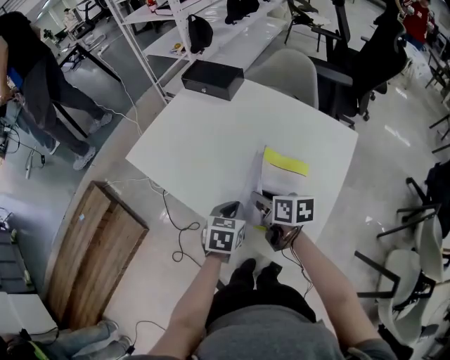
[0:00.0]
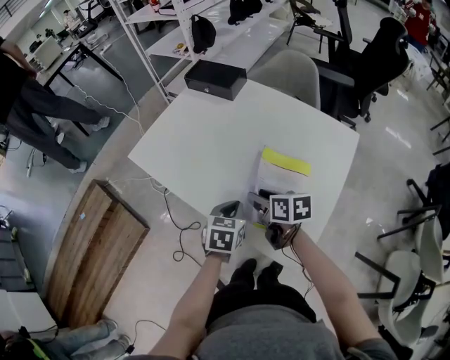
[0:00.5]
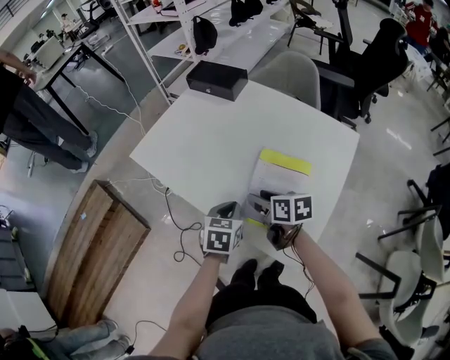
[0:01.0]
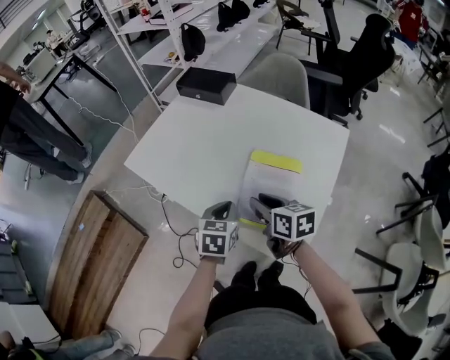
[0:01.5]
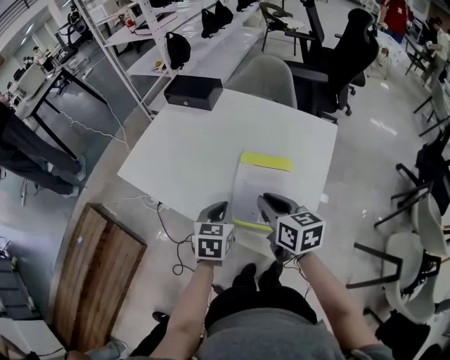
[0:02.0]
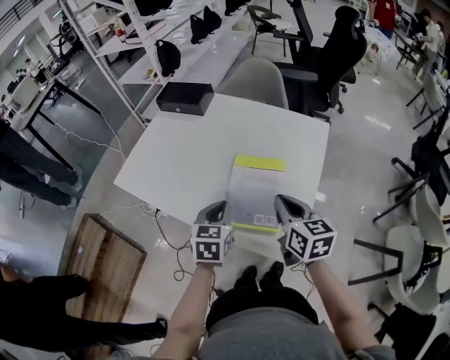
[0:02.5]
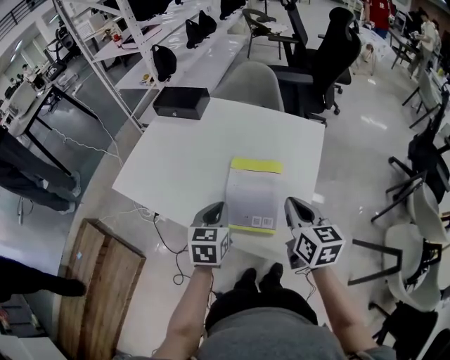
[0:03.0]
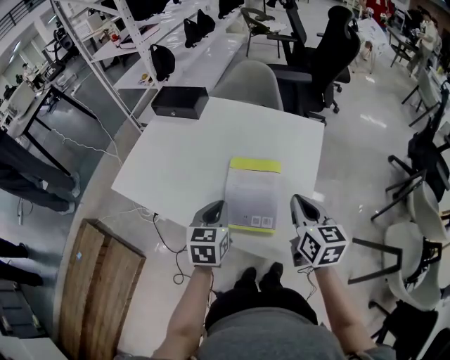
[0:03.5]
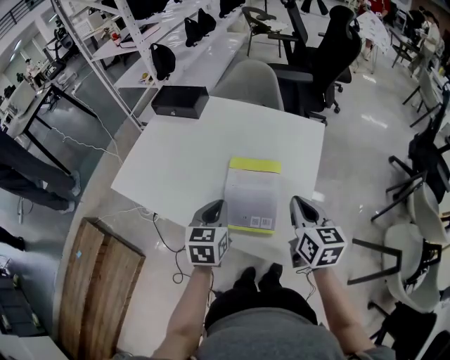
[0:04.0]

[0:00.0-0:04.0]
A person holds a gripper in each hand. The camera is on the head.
0:00.0 to 0:02.0: The right gripper travels upward by roughly 10 cm, and rotates about 20 degrees.
0:02.0 to 0:04.0: The right gripper is displaced to the right by about 10 cm, and swivels roughly 20 degrees.

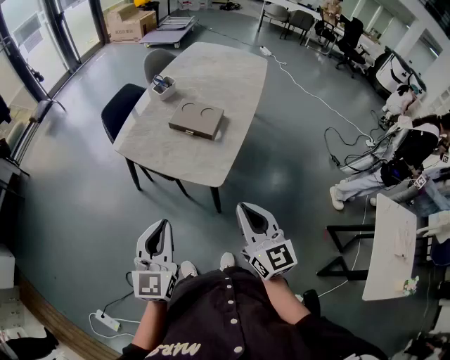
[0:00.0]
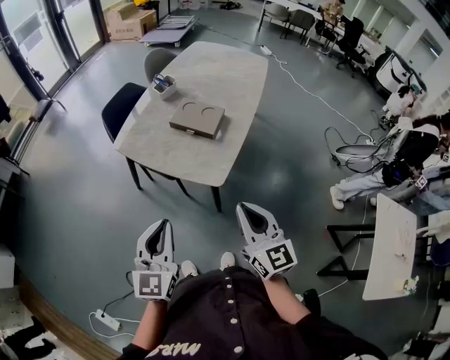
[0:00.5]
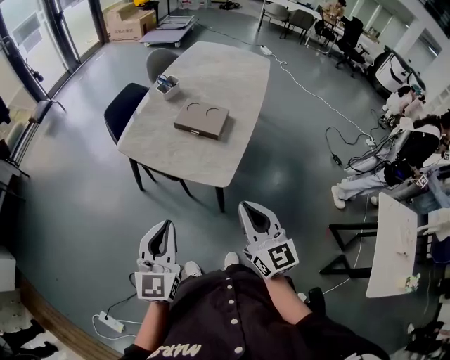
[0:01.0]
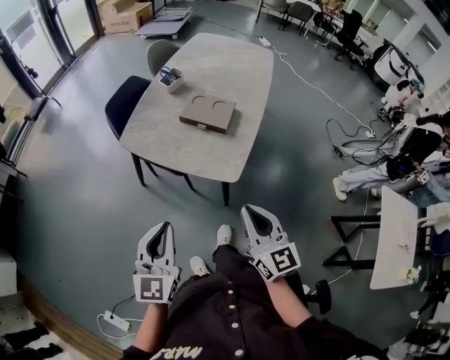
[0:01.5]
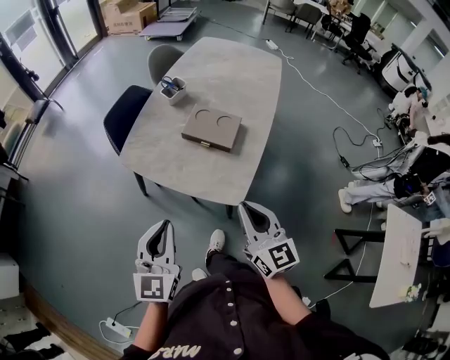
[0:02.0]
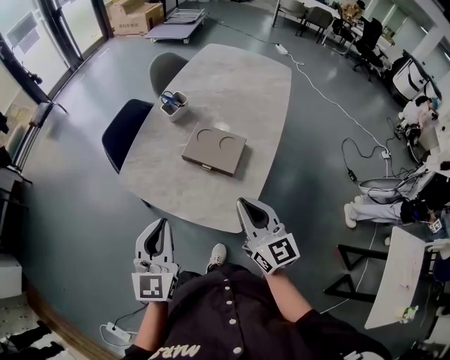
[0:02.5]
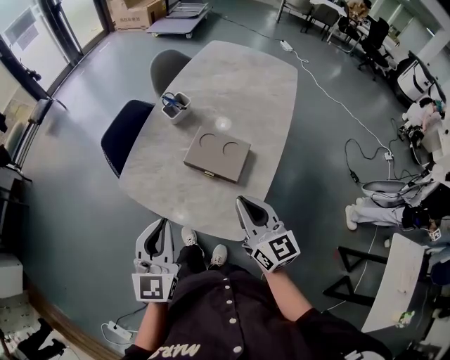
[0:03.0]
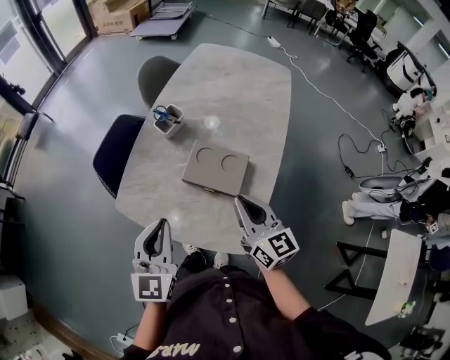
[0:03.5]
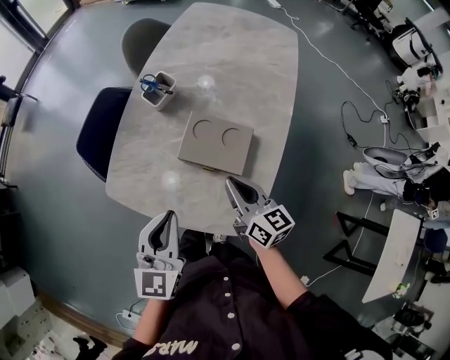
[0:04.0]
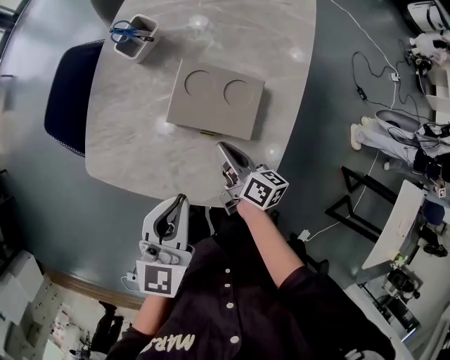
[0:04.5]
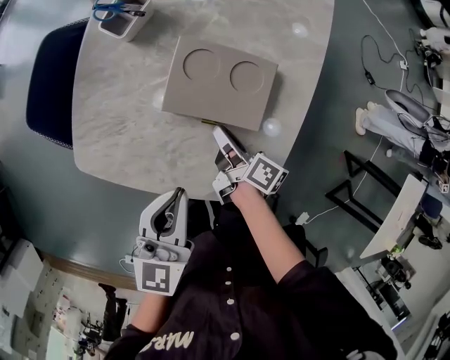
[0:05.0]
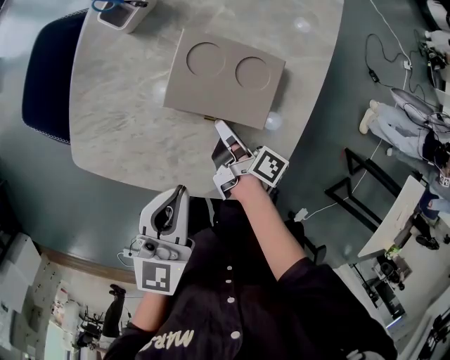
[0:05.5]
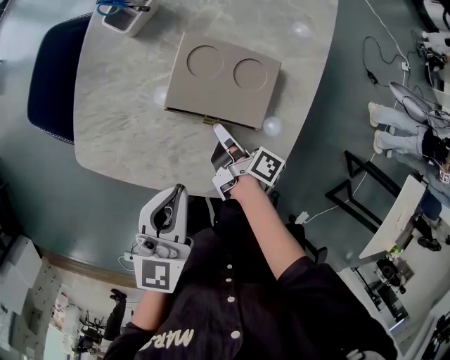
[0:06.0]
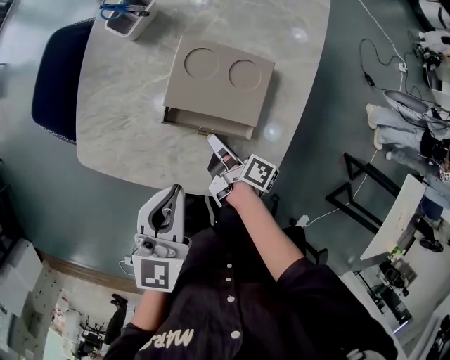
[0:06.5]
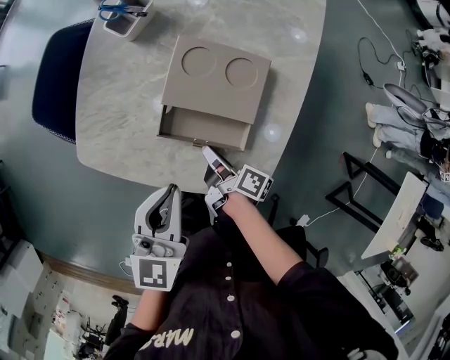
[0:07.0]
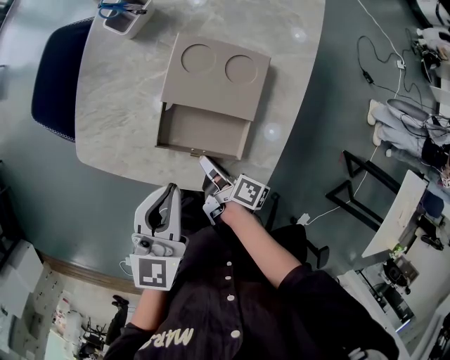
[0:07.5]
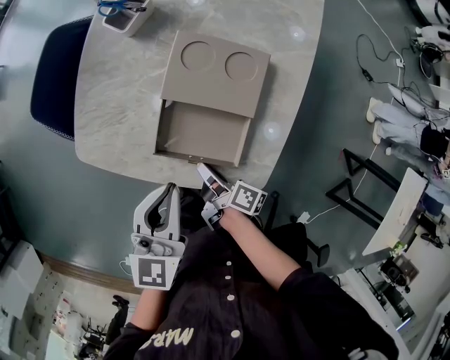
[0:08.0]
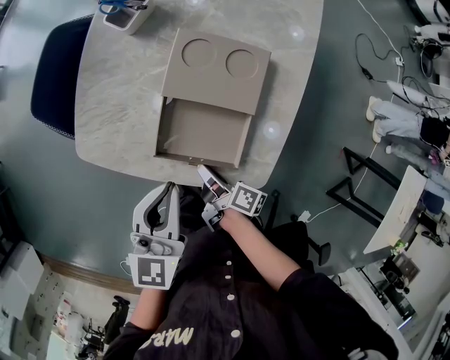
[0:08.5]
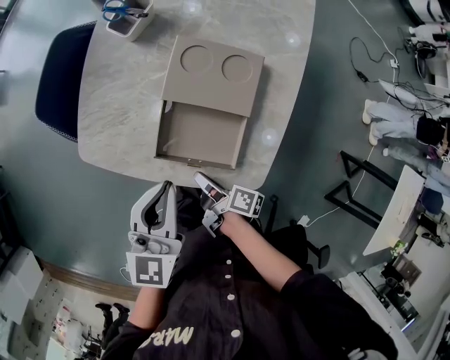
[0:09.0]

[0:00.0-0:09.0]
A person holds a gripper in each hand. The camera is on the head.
0:00.0 to 0:02.0: The two grippers go about 15 cm forward and to the left.
0:02.0 to 0:04.5: Both grippers travel together forward and downward, some 35 cm. The right gripper rolls clockwise, seen from behind, by about 50 degrees; the left gripper swivels roughly 20 degrees.
0:04.5 to 0:07.0: The right gripper goes some 10 cm downward and backward, and changes its angle by some 30 degrees.
0:07.0 to 0:09.0: The right gripper moves backward, roughly 10 cm.

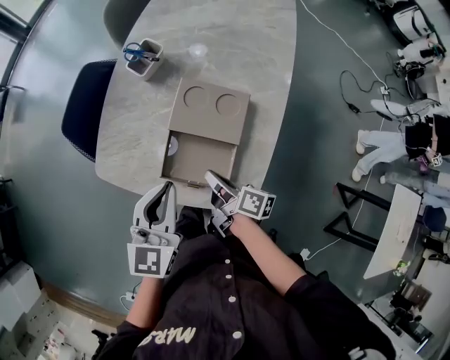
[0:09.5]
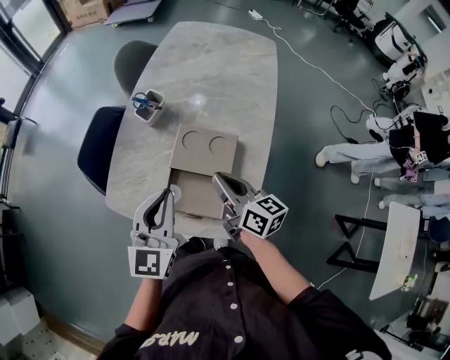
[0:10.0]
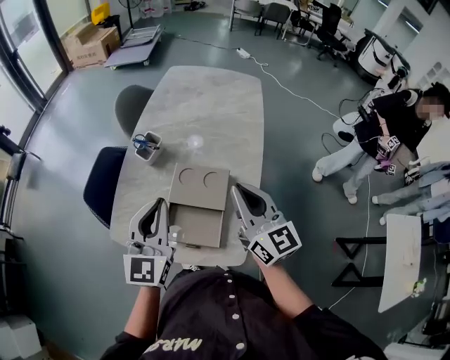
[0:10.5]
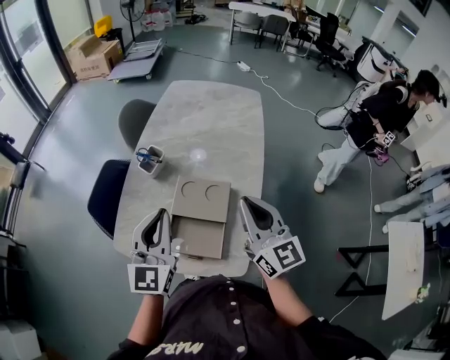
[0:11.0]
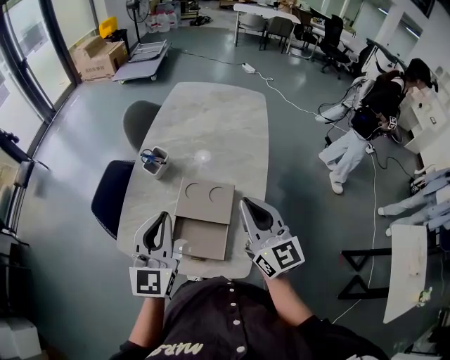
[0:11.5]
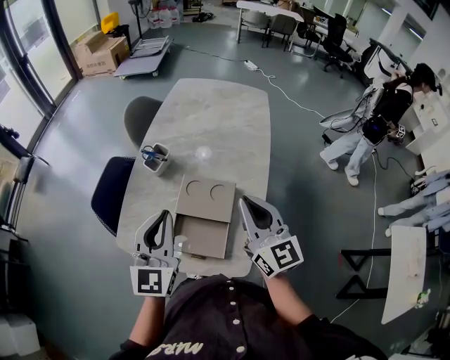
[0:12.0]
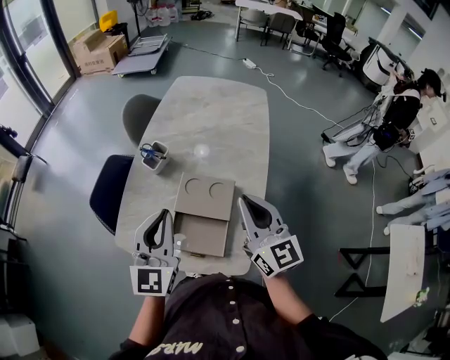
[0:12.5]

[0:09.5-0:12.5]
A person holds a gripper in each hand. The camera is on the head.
0:09.5 to 0:11.0: The left gripper travels upward by approximately 15 cm, and swivels some 20 degrees. The right gripper shifts roughly 30 cm upward, and rotates around the line of its fingers by roughly 70 degrees, counterclockwise from behind.
0:11.0 to 0:12.5: The grippers stay close to where they were, moving slightly.

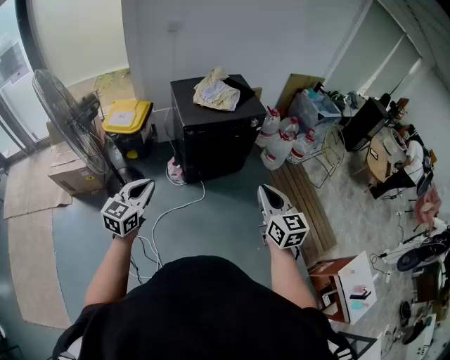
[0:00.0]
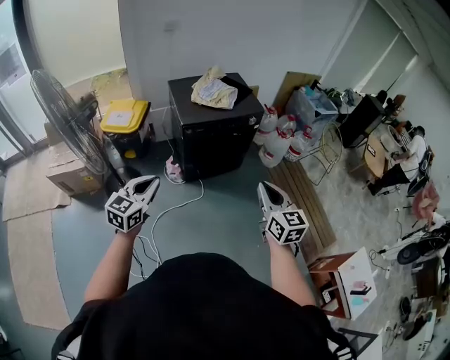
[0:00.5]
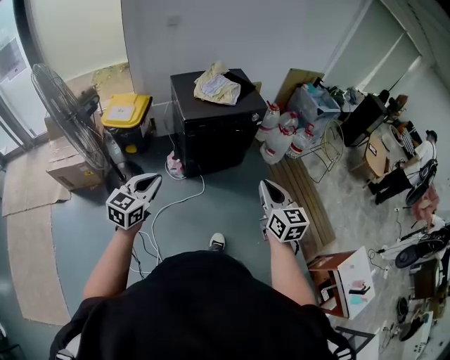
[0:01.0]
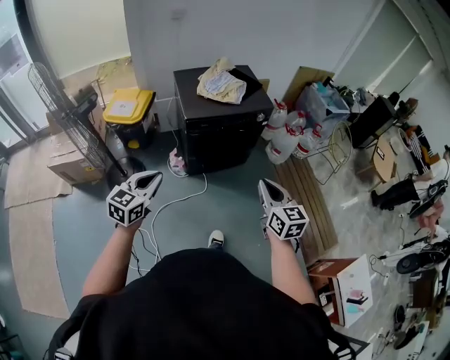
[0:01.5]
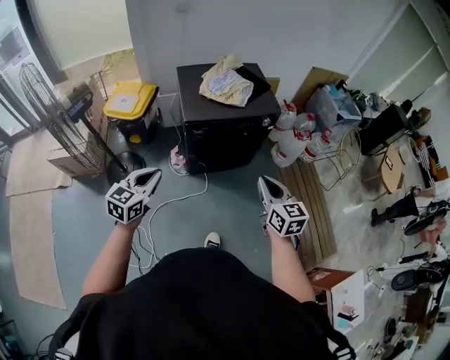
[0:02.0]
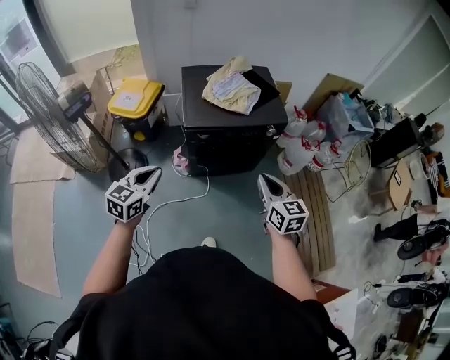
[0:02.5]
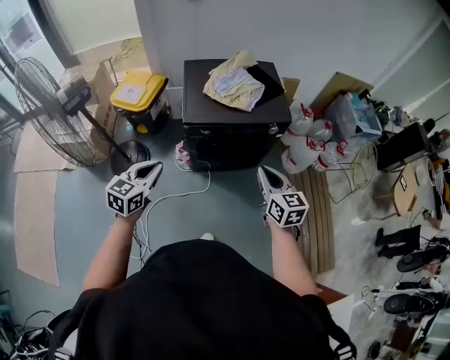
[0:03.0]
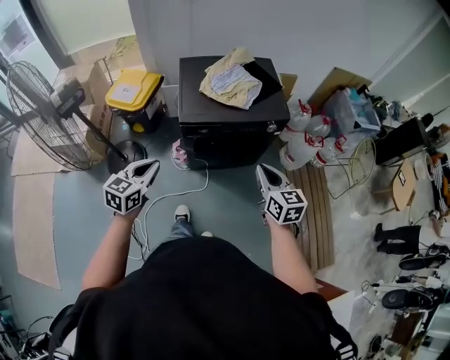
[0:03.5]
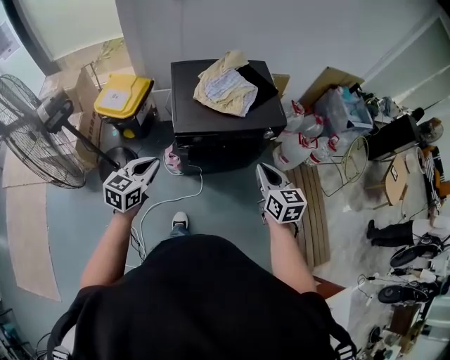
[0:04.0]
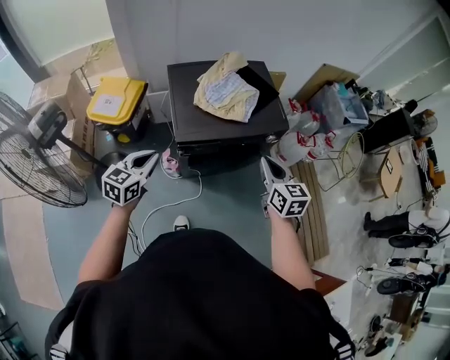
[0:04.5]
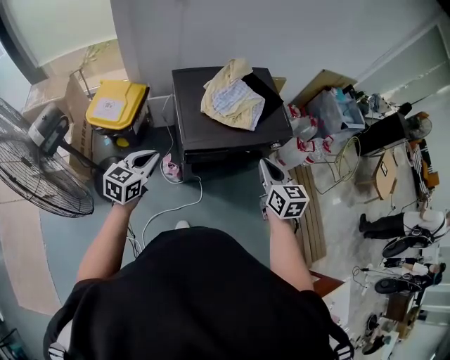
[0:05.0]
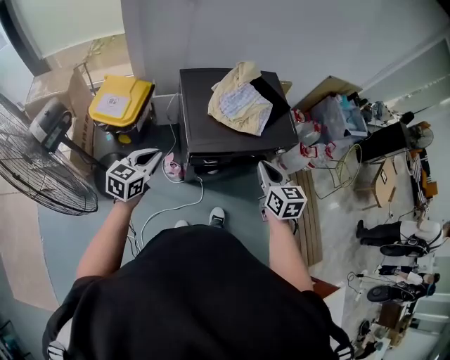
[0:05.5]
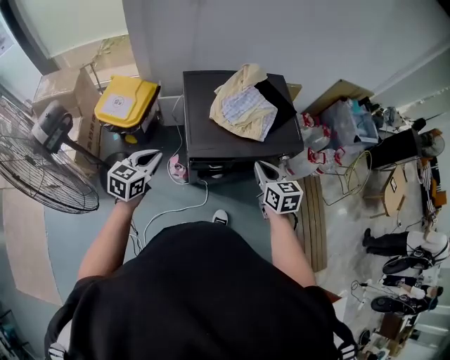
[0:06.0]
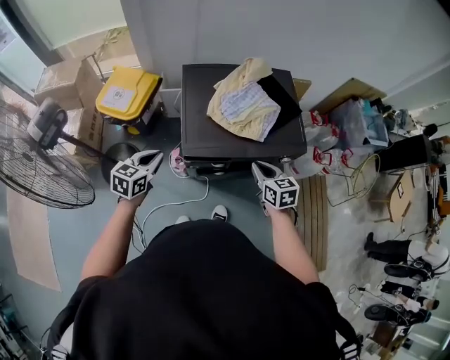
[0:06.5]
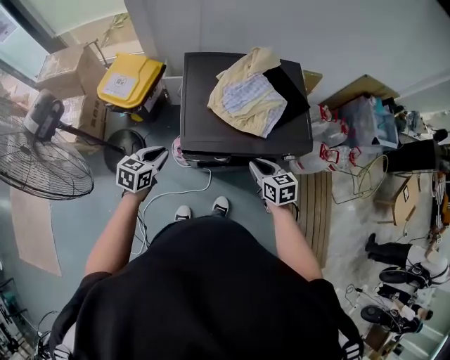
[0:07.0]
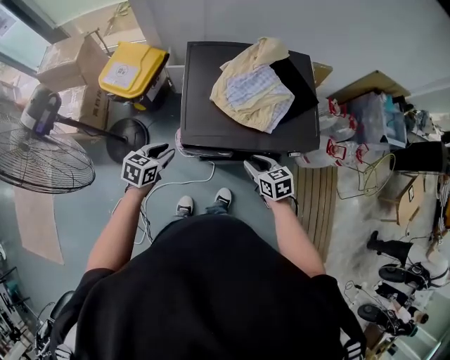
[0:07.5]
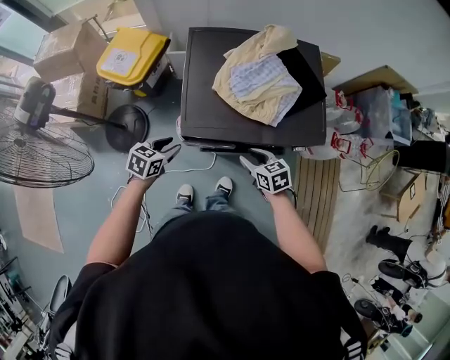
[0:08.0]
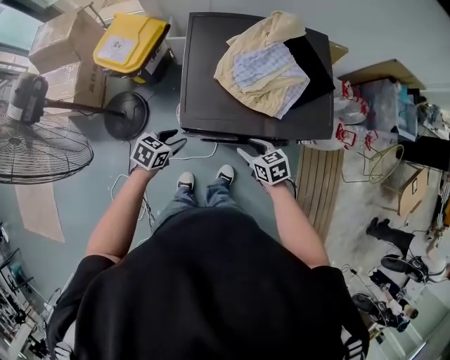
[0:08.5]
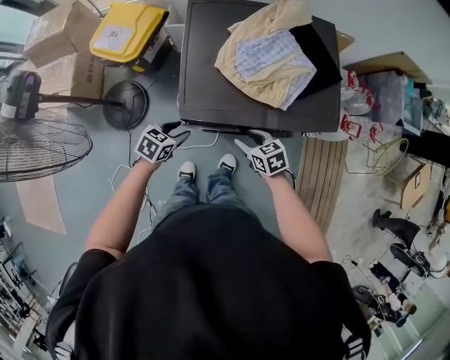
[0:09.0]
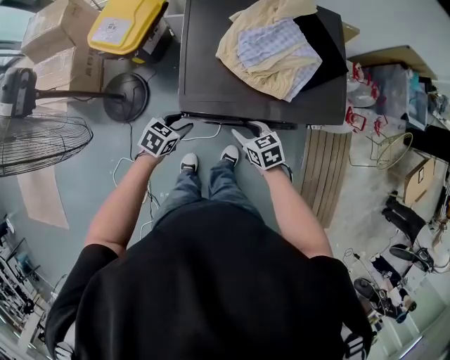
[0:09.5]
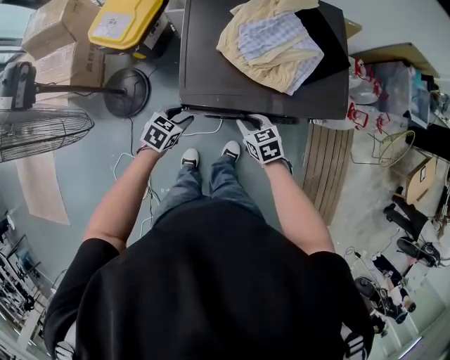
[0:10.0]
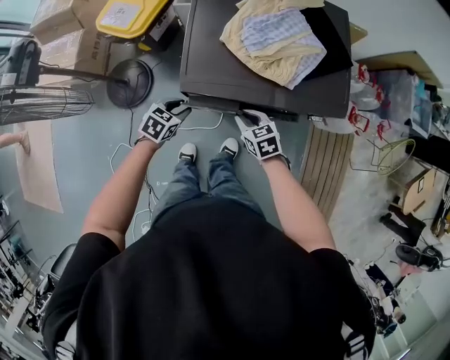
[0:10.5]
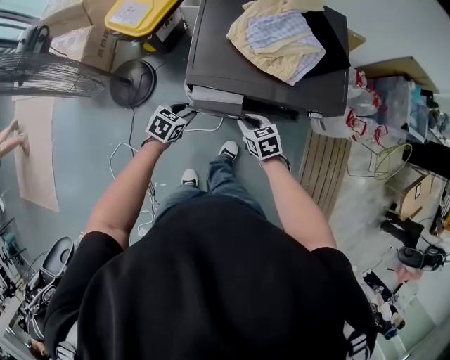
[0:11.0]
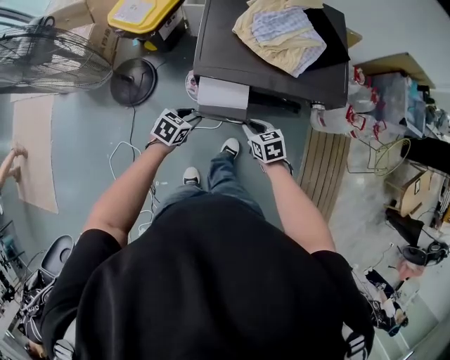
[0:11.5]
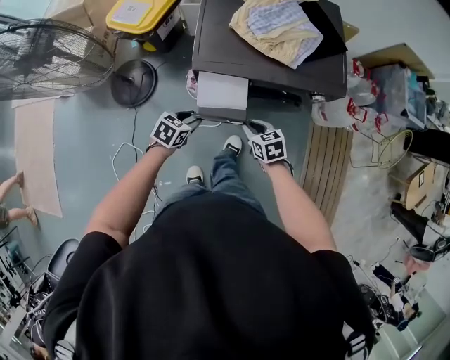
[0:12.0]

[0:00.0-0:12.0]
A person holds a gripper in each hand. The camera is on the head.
0:00.0 to 0:02.0: The left gripper travels forward by about 15 cm; the right gripper shifts some 20 cm forward and downward.
0:02.0 to 0:04.0: The grippers both shift forward by roughly 20 cm.
0:04.0 to 0:06.0: Both grippers move forward and to the left, about 20 cm.
0:06.0 to 0:08.0: The right gripper moves downward, about 20 cm, turns by about 30 degrees, and opens. The left gripper travels downward and to the right by roughly 20 cm, rotates approximately 20 degrees, and opens.
0:08.0 to 0:10.0: Both grippers travel together downward, approximately 10 cm.
0:10.0 to 0:12.0: The two grippers go some 15 cm backward.
